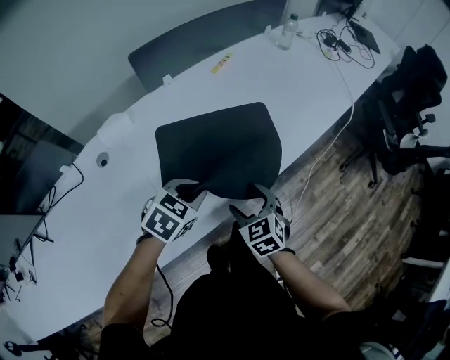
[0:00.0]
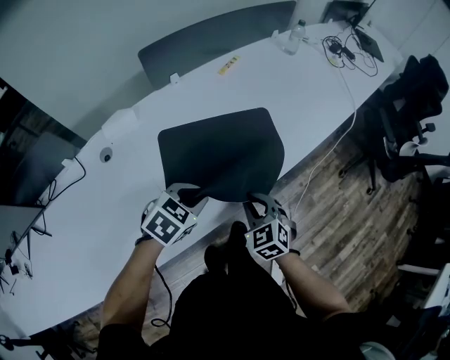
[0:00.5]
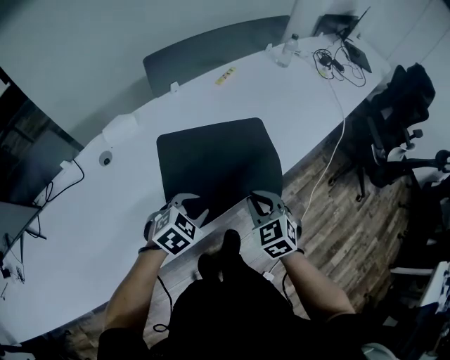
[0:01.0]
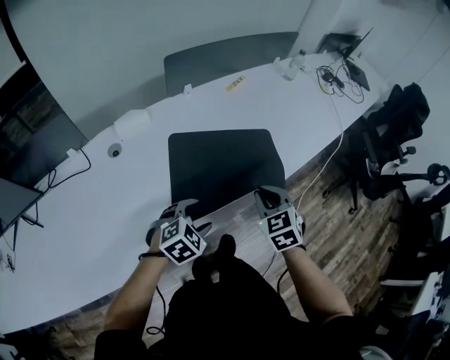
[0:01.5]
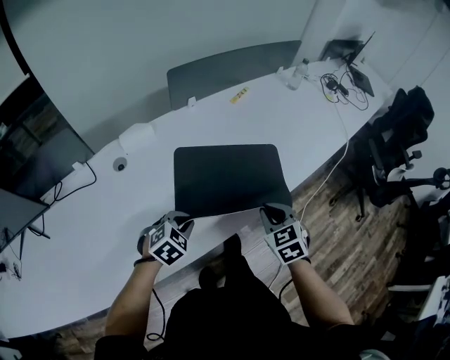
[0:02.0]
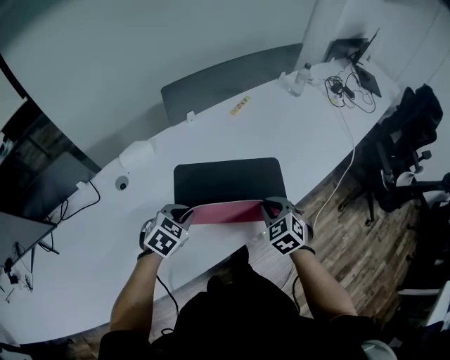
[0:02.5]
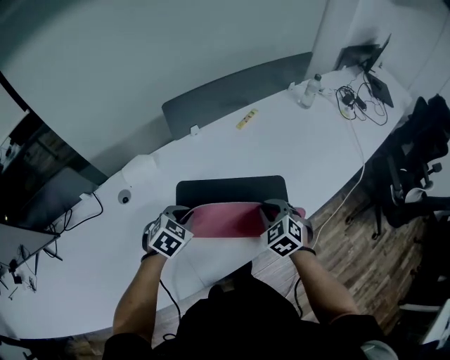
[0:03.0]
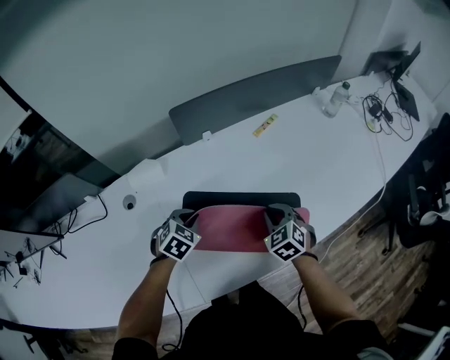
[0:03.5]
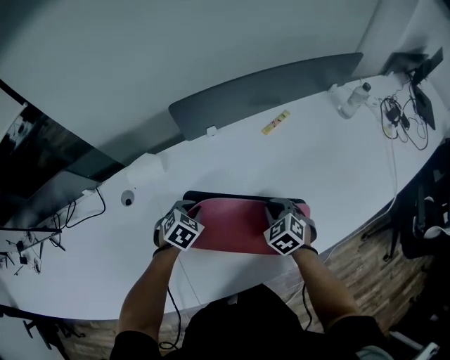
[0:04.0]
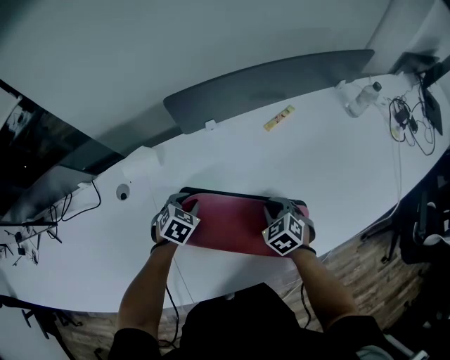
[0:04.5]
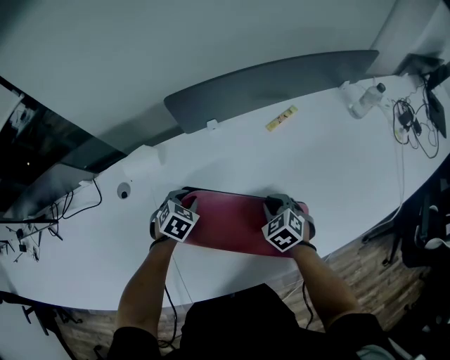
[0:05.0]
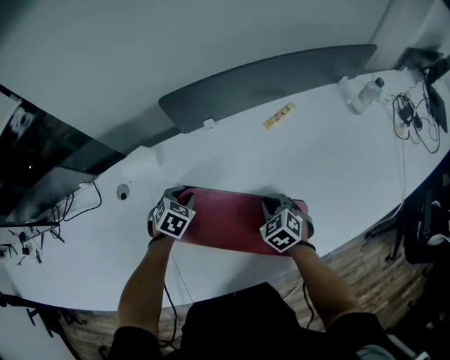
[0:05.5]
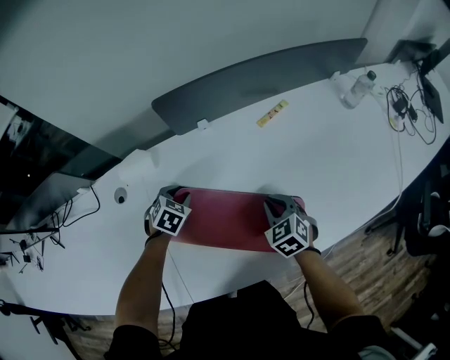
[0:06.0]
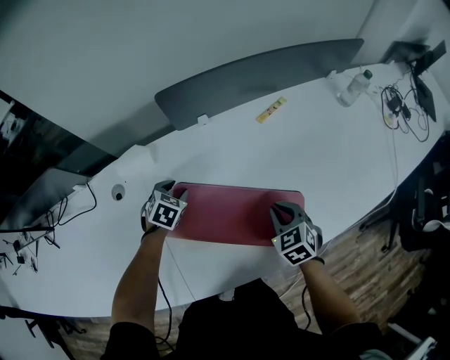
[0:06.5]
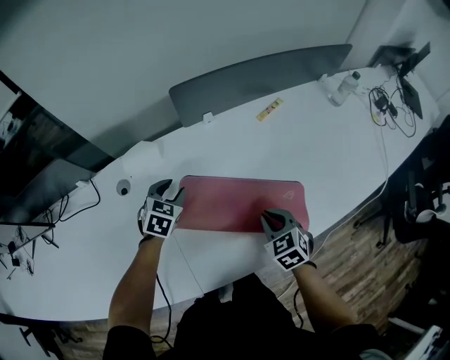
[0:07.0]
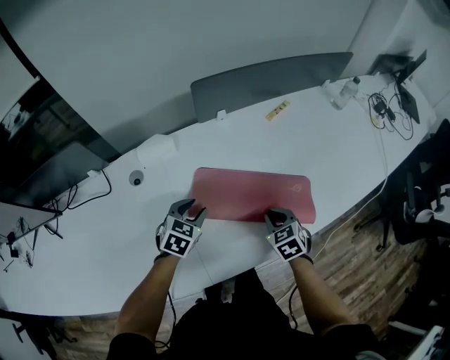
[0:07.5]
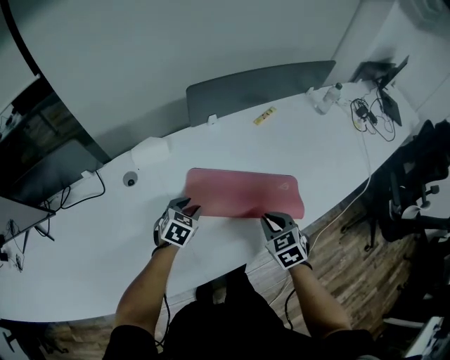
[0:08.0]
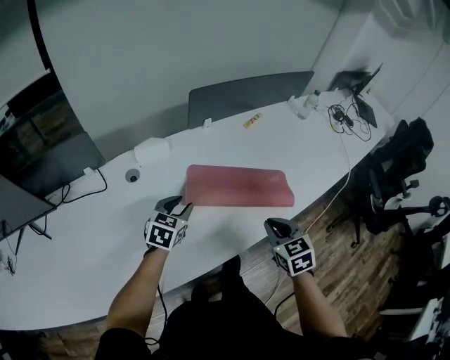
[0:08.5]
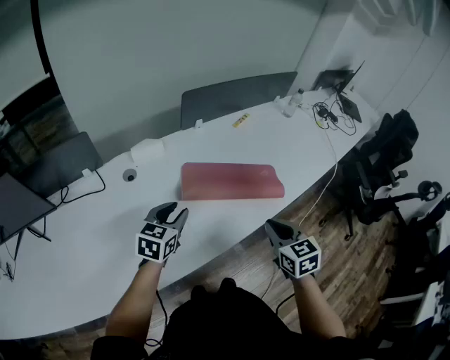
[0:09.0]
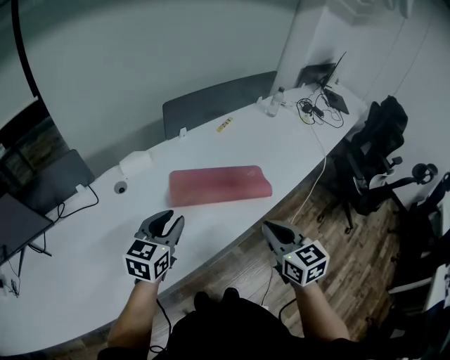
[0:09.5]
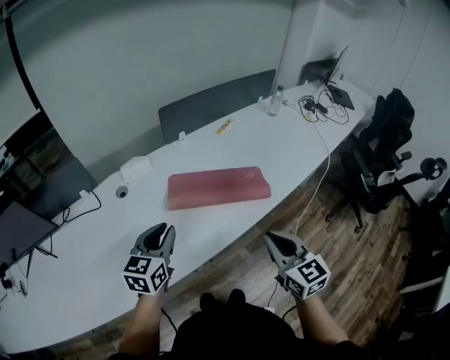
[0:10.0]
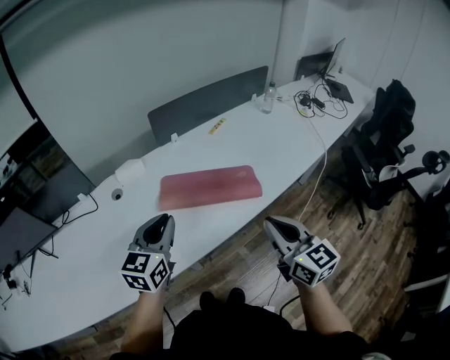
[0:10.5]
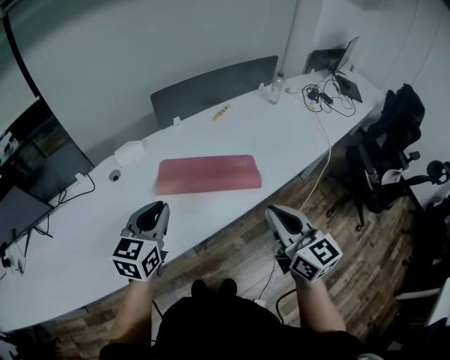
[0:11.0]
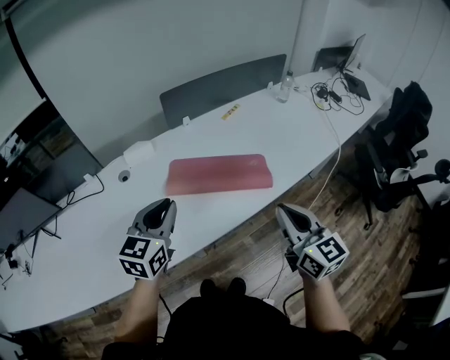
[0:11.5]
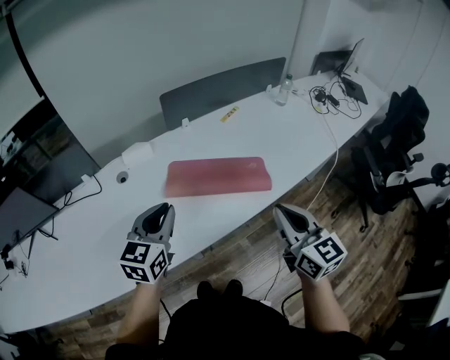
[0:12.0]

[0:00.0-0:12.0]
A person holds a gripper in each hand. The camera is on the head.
0:00.0 to 0:02.0: The left gripper is displaced backward, to the left and downward by roughly 15 cm, and opens, then closes once more; the right gripper is displaced upward by roughly 5 cm, and closes.
0:02.0 to 0:04.0: Both grippers move forward, roughly 25 cm. The right gripper swivels about 20 degrees. The left gripper turns by approximately 20 degrees.
0:04.0 to 0:06.0: The left gripper goes about 5 cm forward.
0:06.0 to 0:08.0: The right gripper is displaced backward, to the left and upward by approximately 20 cm. Meanwhile the left gripper goes approximately 15 cm backward.
0:08.0 to 0:10.0: The left gripper travels upward and backward by some 30 cm, and swivels roughly 30 degrees; the right gripper goes approximately 30 cm backward and upward, and points its fingers some 30 degrees further upward.
0:10.0 to 0:12.0: The left gripper shifts by approximately 5 cm; the right gripper heads upward and to the right, covering roughly 5 cm.

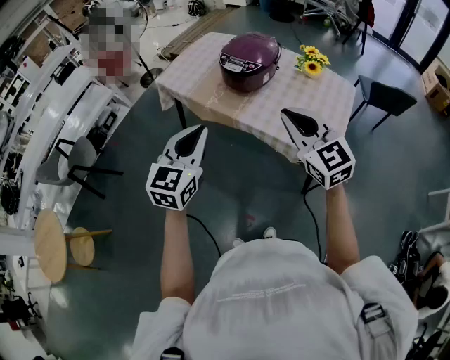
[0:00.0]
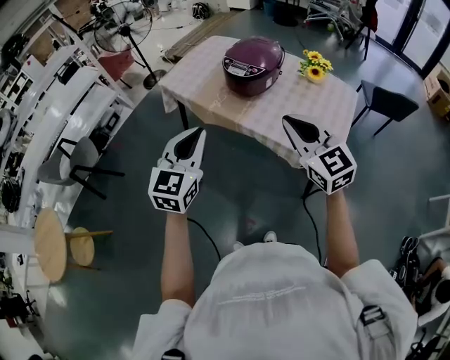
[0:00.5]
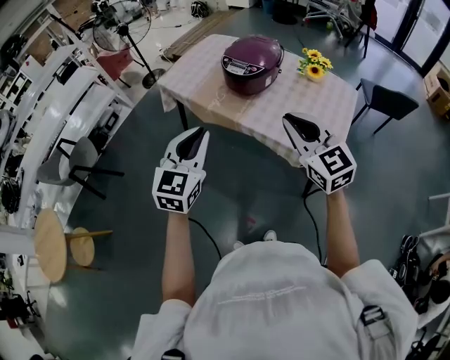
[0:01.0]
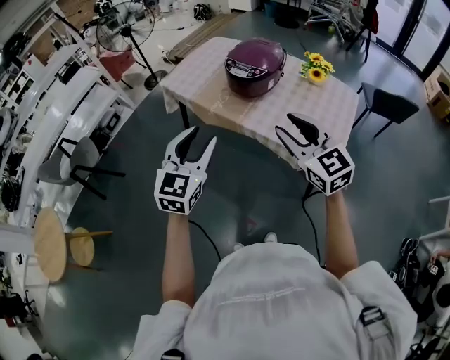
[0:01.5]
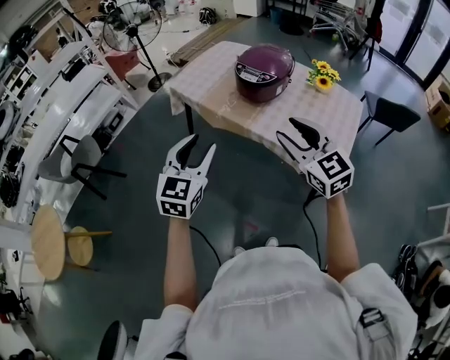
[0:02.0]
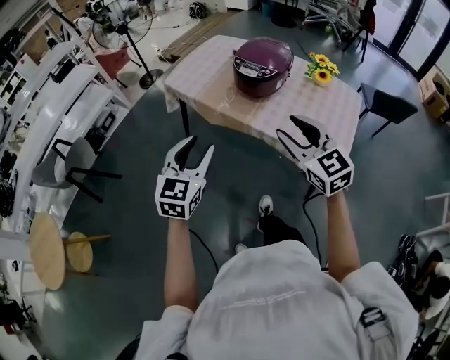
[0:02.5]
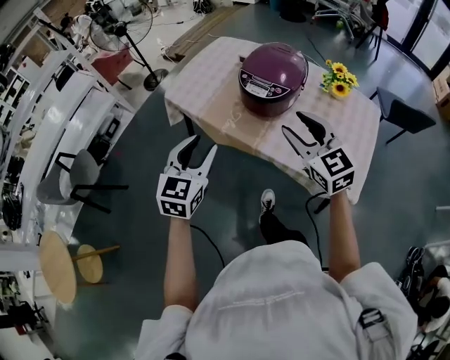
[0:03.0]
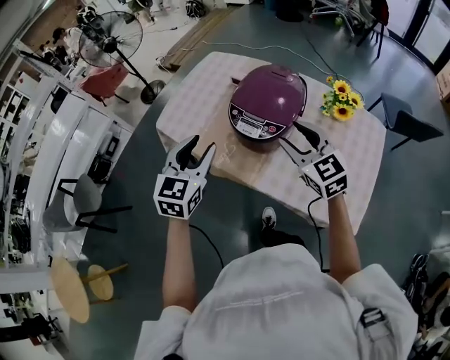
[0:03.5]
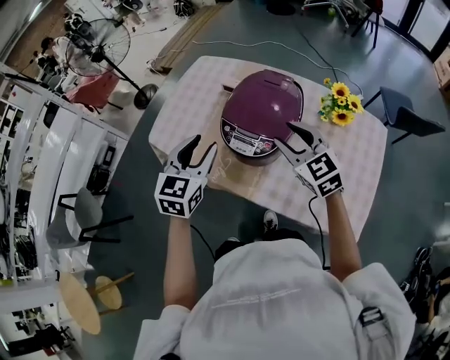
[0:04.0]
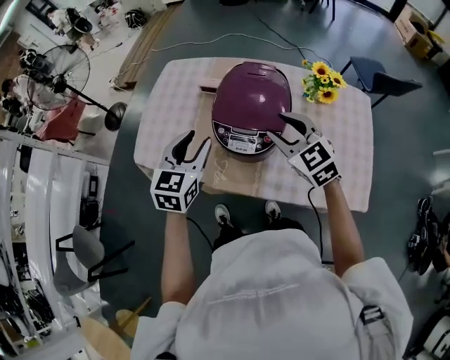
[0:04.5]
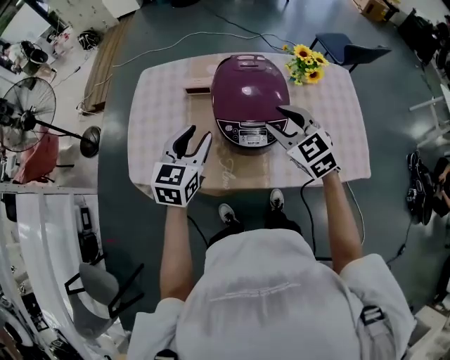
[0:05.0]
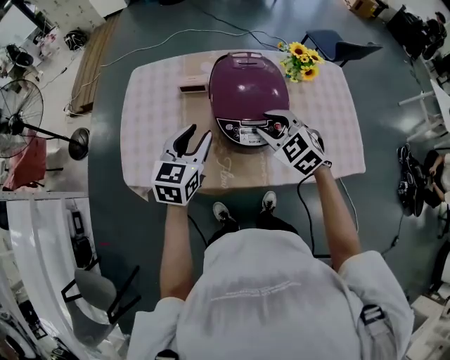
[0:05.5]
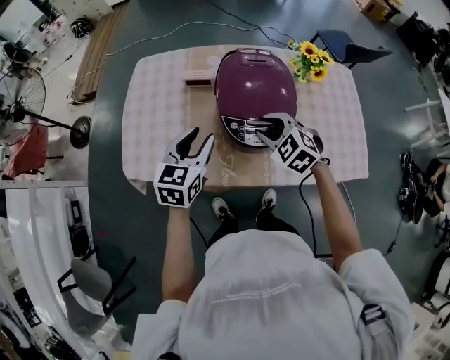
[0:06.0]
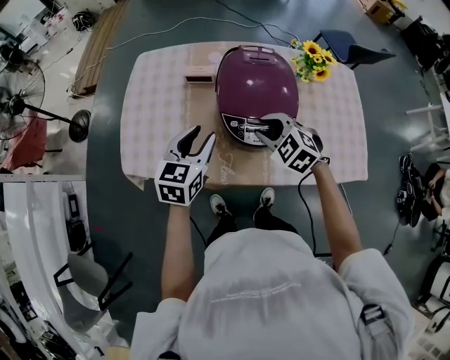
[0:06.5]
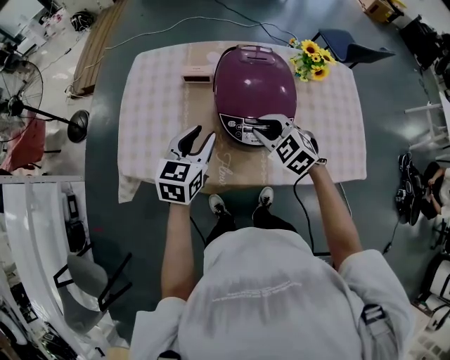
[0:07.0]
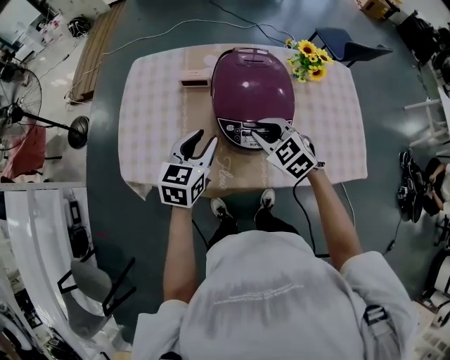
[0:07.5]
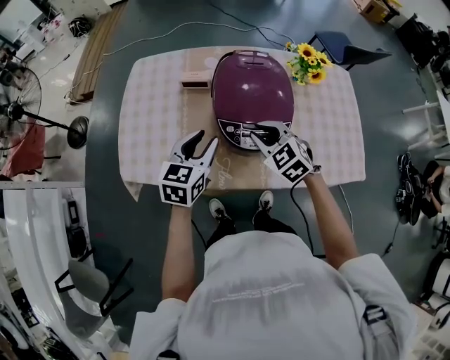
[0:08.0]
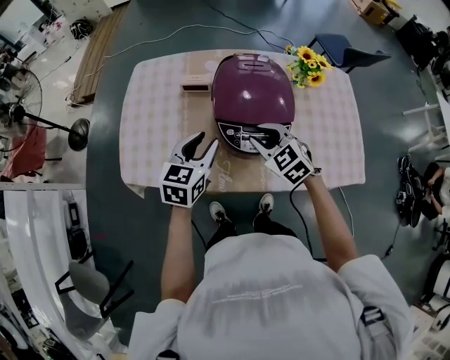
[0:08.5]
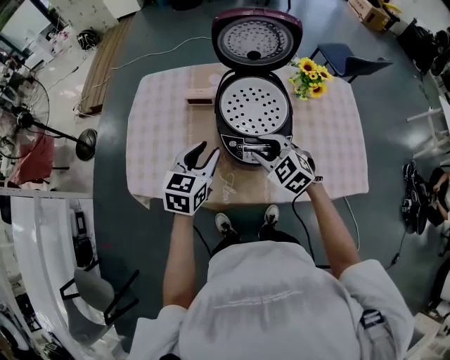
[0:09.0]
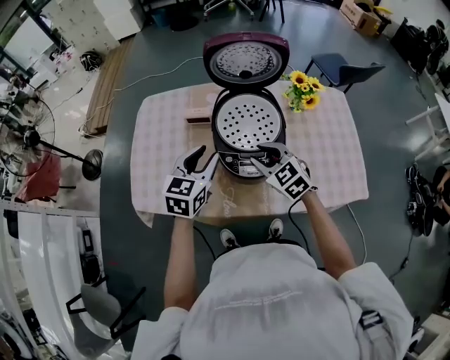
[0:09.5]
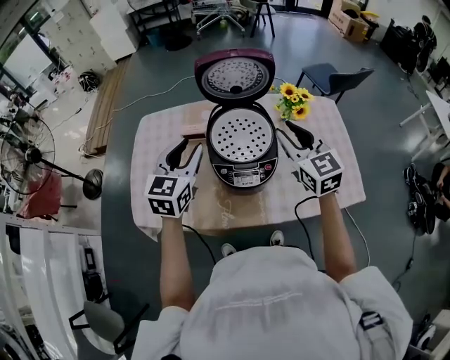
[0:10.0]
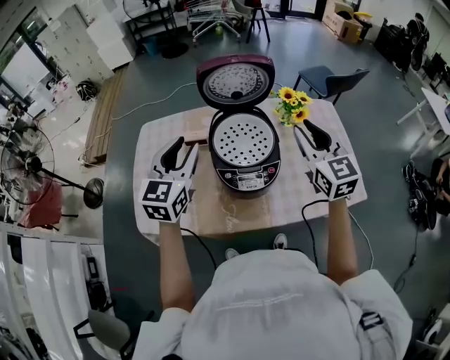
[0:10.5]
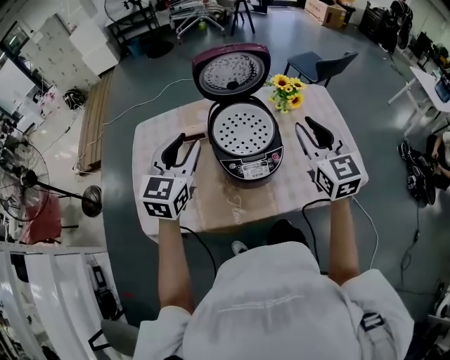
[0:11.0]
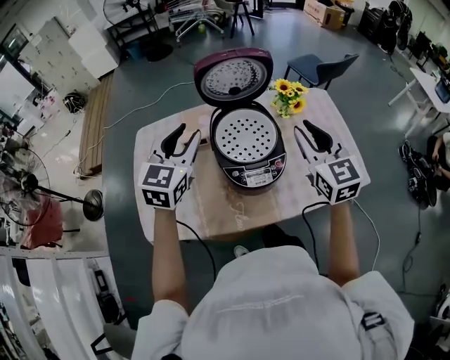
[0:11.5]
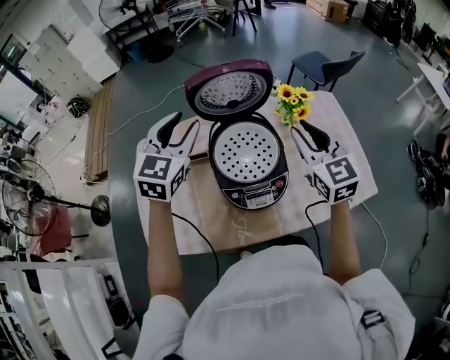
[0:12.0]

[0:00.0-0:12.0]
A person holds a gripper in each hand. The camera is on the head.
0:00.0 to 0:02.0: The right gripper opens up. The left gripper heads to the left, covering roughly 5 cm, and opens.
0:02.0 to 0:04.0: The two grippers go approximately 40 cm forward.
0:04.0 to 0:06.0: The right gripper moves downward, some 10 cm, and turns by about 30 degrees. Meanwhile the left gripper moves about 15 cm, and rotates some 30 degrees.
0:06.0 to 0:08.0: The grippers stay close to where they were, moving slightly.
0:08.0 to 0:10.0: The right gripper heads upward and to the right, covering about 20 cm, and changes its angle by roughly 40 degrees. The left gripper goes approximately 15 cm upward and forward.
0:10.0 to 0:12.0: The left gripper heads forward and upward, covering approximately 15 cm.

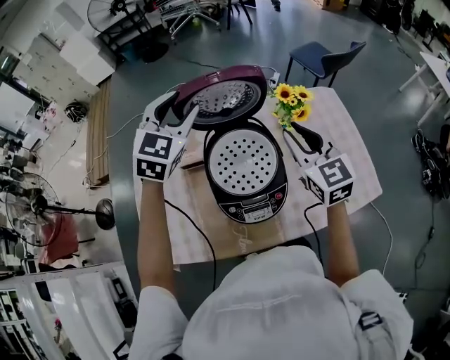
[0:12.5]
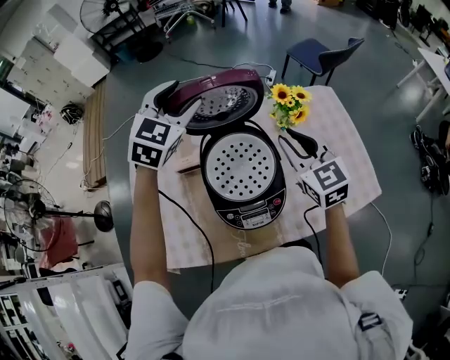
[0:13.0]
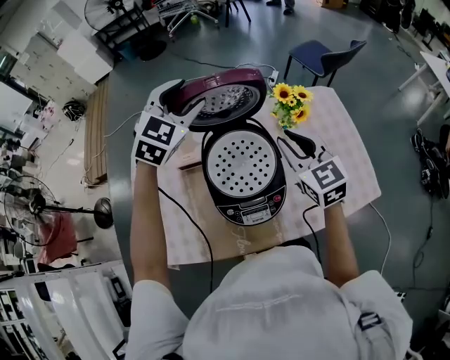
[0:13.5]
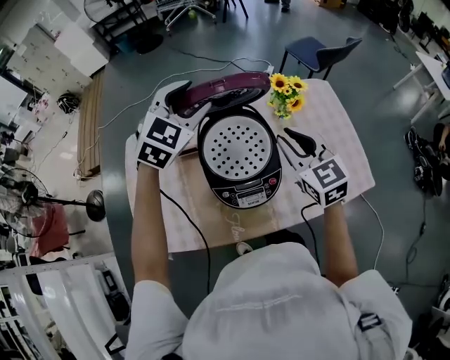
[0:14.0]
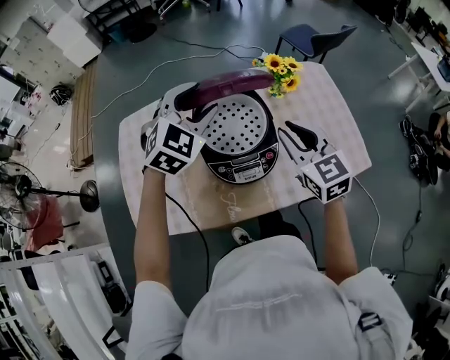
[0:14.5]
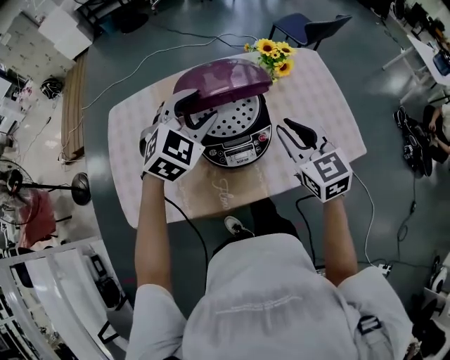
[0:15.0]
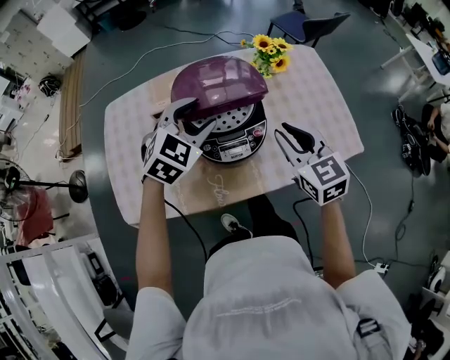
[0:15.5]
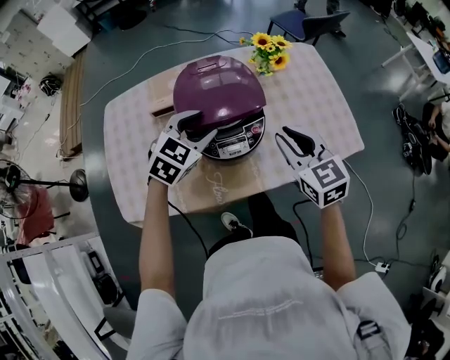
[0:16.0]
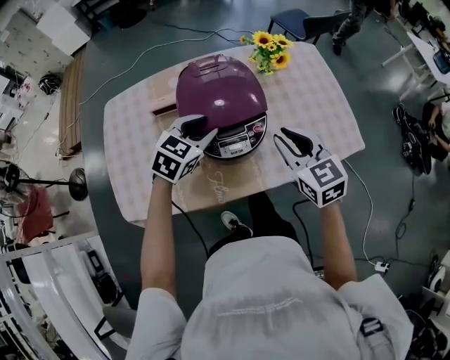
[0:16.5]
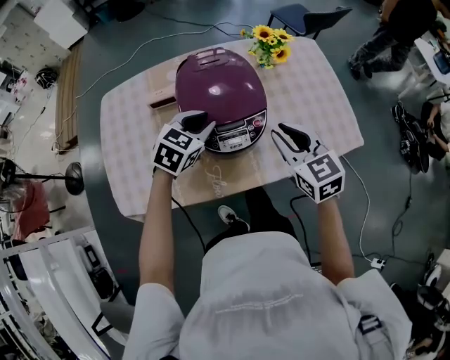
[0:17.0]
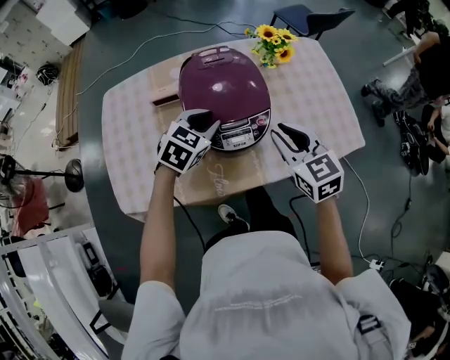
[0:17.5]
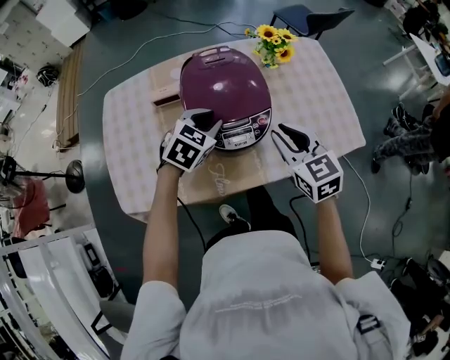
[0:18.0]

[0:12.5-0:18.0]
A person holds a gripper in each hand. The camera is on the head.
0:12.5 to 0:14.5: The left gripper travels backward and downward by roughly 10 cm. The right gripper moves backward, roughly 10 cm.
0:14.5 to 0:16.0: The right gripper shifts approximately 10 cm backward and downward; the left gripper is displaced downward and backward by roughly 15 cm, and rotates about 20 degrees.
0:16.0 to 0:18.0: The left gripper closes up.
